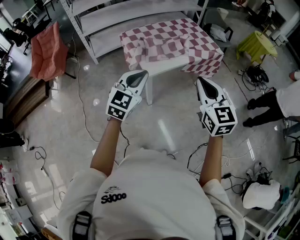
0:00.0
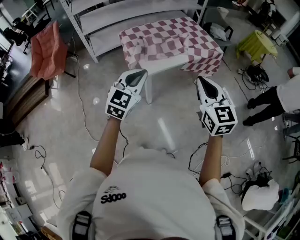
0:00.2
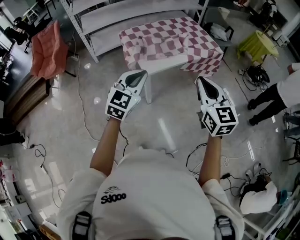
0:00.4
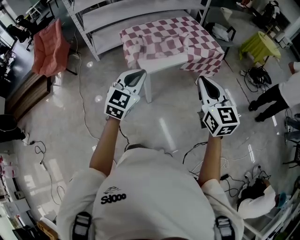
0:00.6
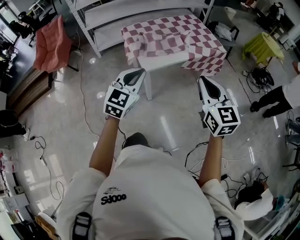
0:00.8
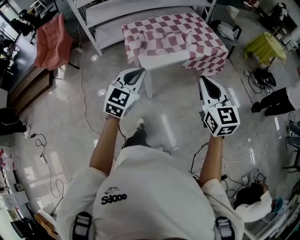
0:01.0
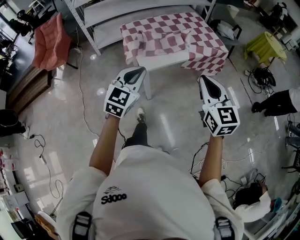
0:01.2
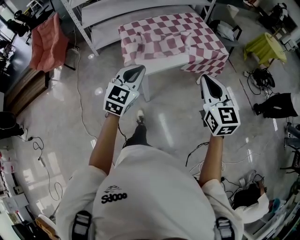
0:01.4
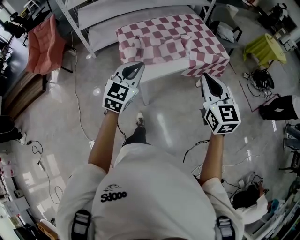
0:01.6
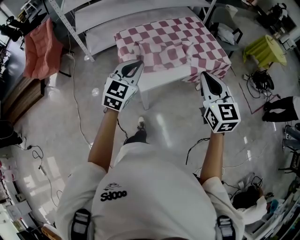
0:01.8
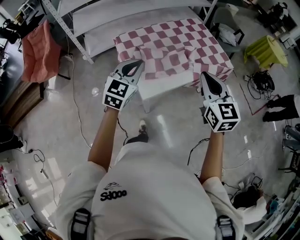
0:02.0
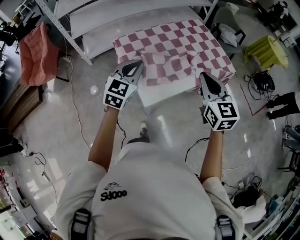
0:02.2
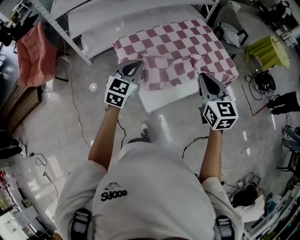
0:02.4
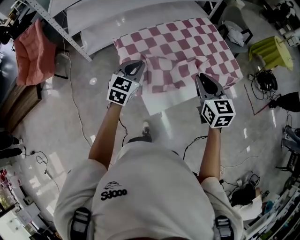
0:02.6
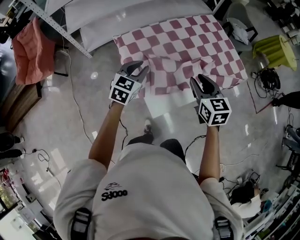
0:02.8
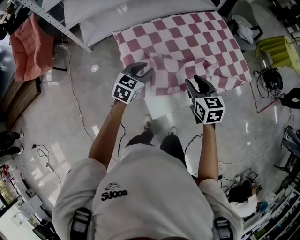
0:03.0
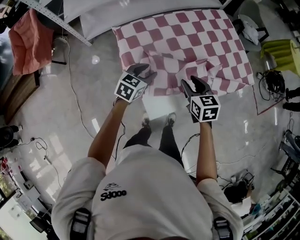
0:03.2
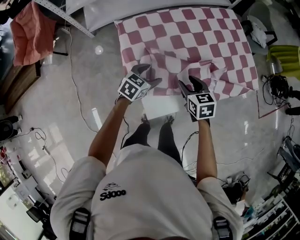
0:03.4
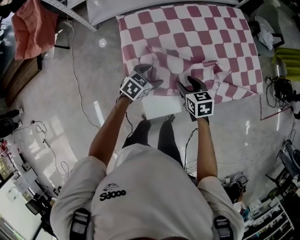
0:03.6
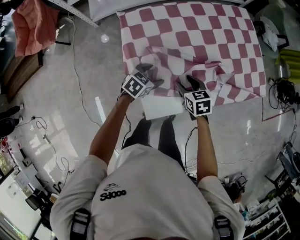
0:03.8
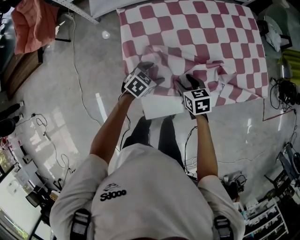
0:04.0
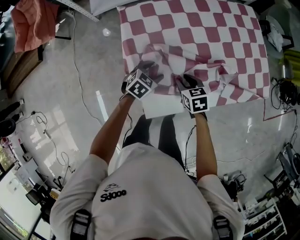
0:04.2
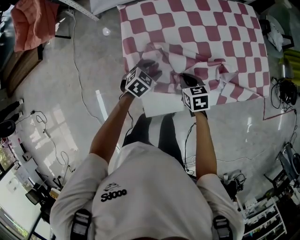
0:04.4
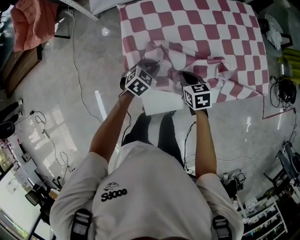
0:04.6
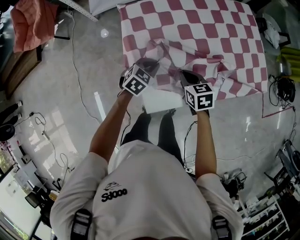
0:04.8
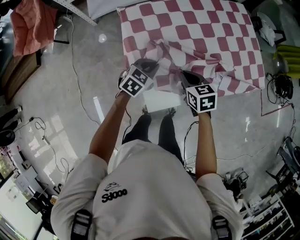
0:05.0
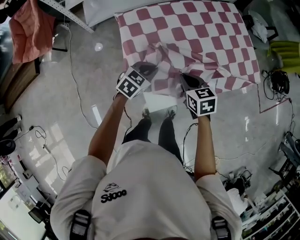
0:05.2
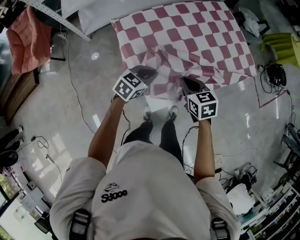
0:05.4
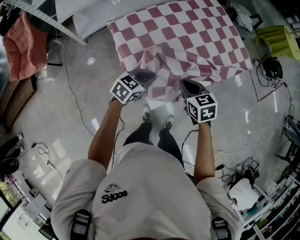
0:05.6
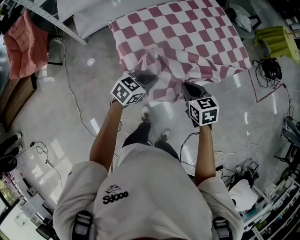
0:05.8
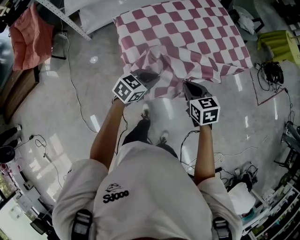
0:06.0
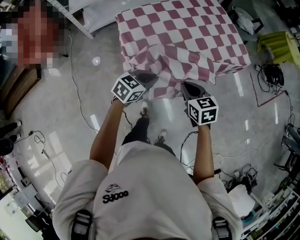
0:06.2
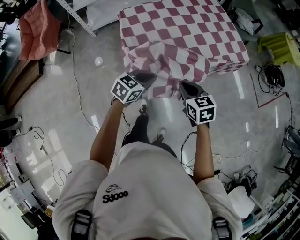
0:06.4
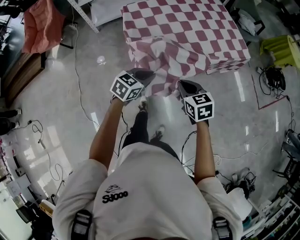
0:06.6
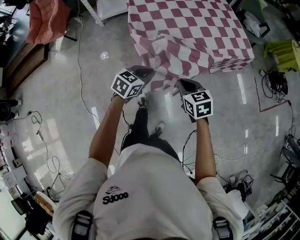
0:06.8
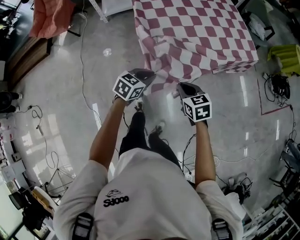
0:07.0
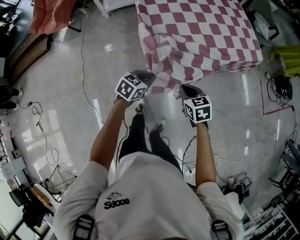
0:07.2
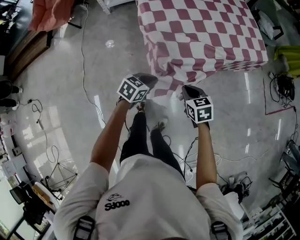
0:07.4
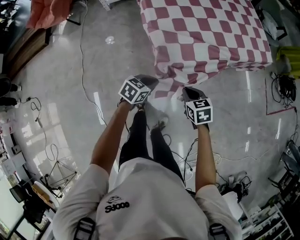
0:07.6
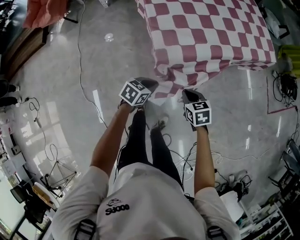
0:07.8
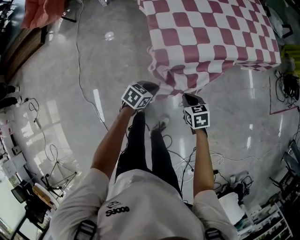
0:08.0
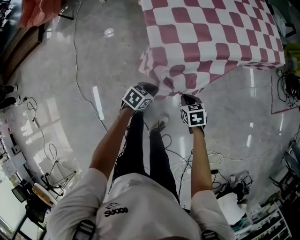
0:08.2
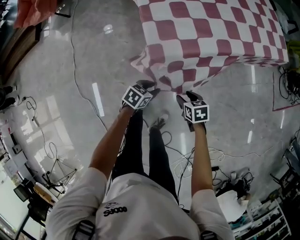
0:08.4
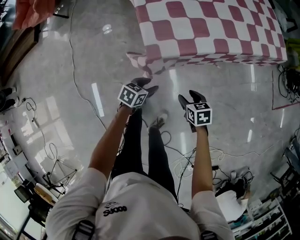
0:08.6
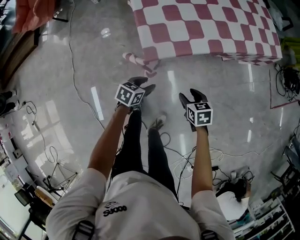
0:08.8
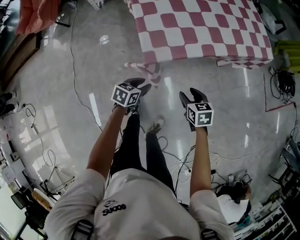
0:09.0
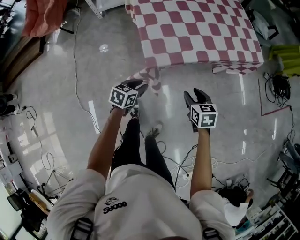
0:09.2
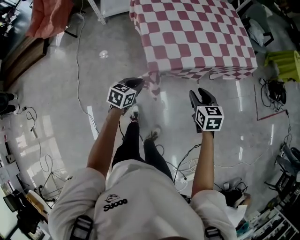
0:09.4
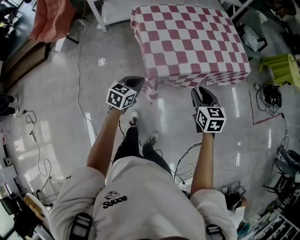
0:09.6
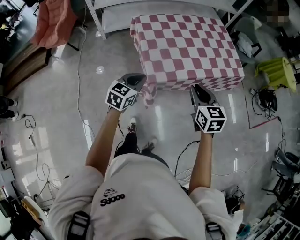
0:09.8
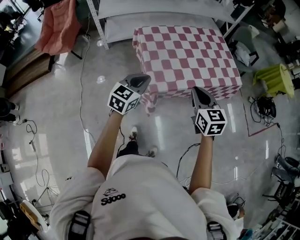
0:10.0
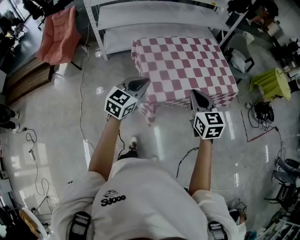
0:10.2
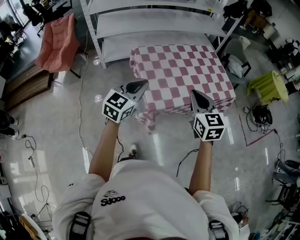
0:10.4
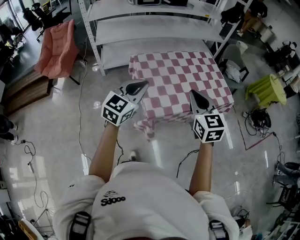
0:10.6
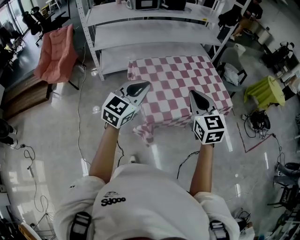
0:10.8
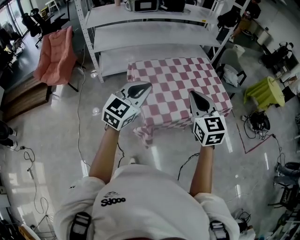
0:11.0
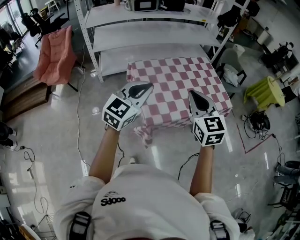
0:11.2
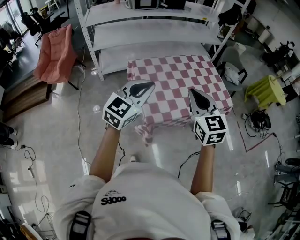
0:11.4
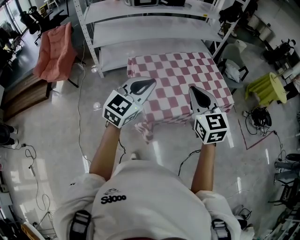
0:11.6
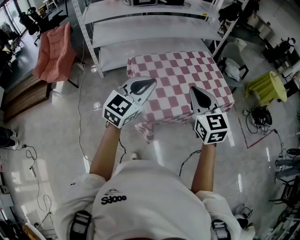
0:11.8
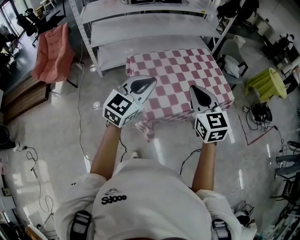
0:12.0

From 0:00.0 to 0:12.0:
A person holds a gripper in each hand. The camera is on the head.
From 0:00.0 to 0:01.6: The grippers both shift forward by some 15 cm.
From 0:01.6 to 0:03.0: The right gripper travels forward, downward and to the left by approximately 40 cm, turns by about 30 degrees, and opens up. Meanwhile the left gripper shifts approximately 40 cm forward and downward, and rotates about 30 degrees.
From 0:03.0 to 0:04.4: Both grippers move downward, approximately 20 cm. The left gripper swivels about 20 degrees, and opens, then closes again. The right gripper changes its angle by about 20 degrees, and closes.
From 0:04.4 to 0:06.0: The grippers both shift backward and upward by some 25 cm. The left gripper rotates roughly 20 degrees, and closes its fingers.
From 0:06.0 to 0:07.6: The grippers both shift backward and downward by roughly 25 cm. The left gripper swivels roughly 20 degrees.
From 0:07.6 to 0:09.0: The left gripper shifts approximately 10 cm downward, and opens; the right gripper goes approximately 10 cm downward and to the right, and opens up.
From 0:09.0 to 0:10.4: Both grippers move upward, approximately 50 cm. The right gripper tilts its fingers roughly 30 degrees upward, and closes its fingers. Meanwhile the left gripper tips its fingers upward by about 30 degrees, and closes its fingers.
From 0:10.4 to 0:12.0: The grippers both shift upward by about 5 cm.

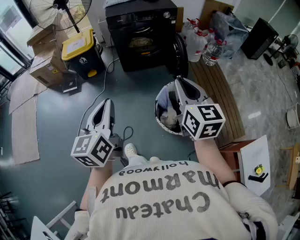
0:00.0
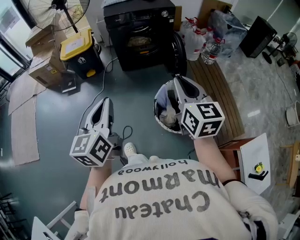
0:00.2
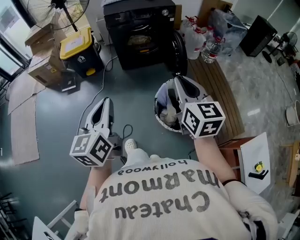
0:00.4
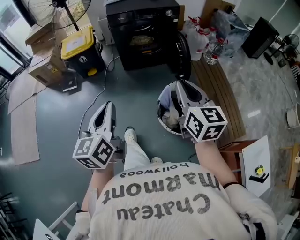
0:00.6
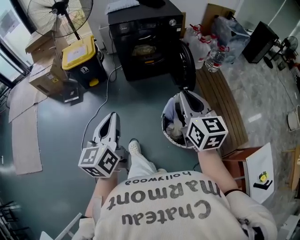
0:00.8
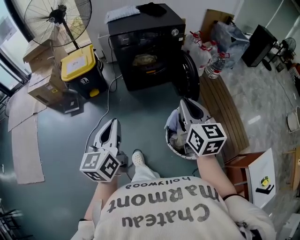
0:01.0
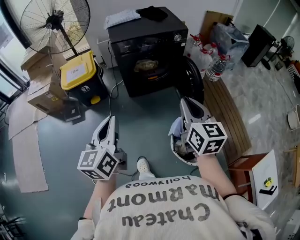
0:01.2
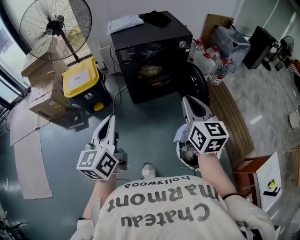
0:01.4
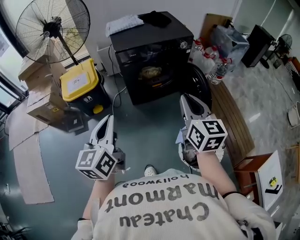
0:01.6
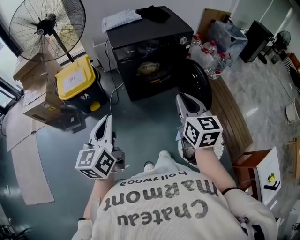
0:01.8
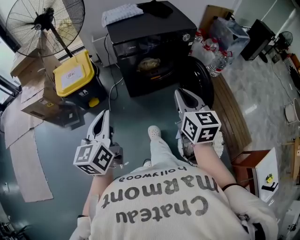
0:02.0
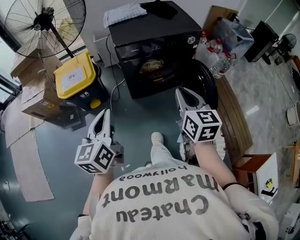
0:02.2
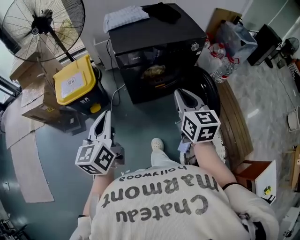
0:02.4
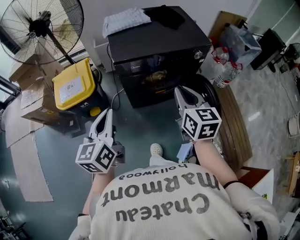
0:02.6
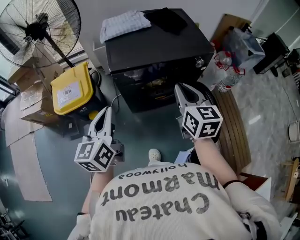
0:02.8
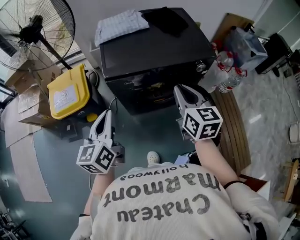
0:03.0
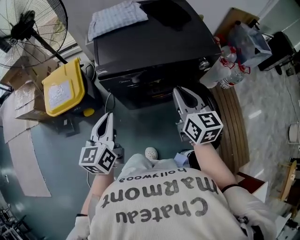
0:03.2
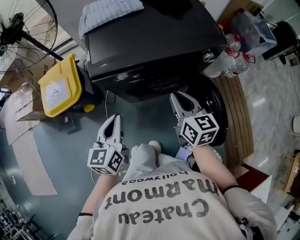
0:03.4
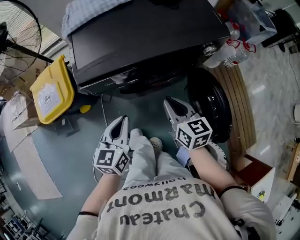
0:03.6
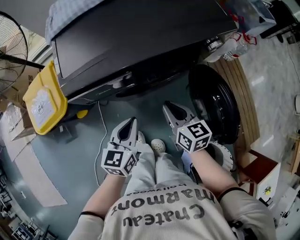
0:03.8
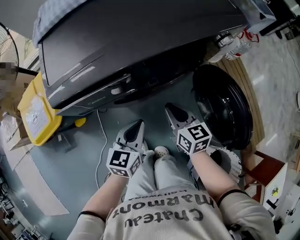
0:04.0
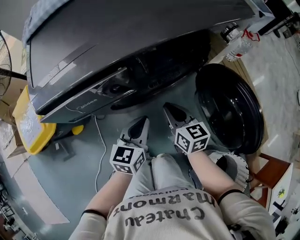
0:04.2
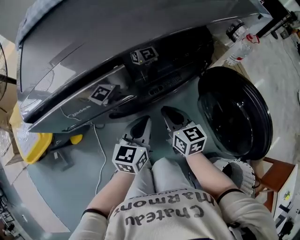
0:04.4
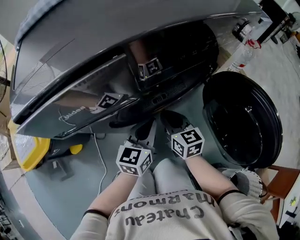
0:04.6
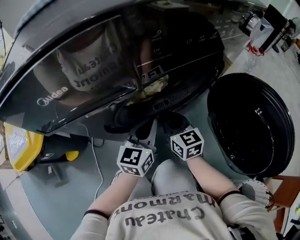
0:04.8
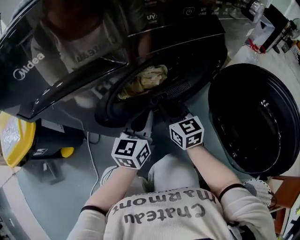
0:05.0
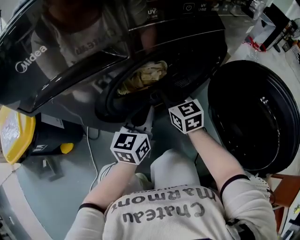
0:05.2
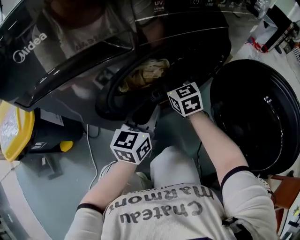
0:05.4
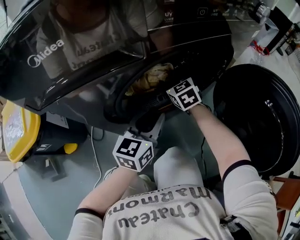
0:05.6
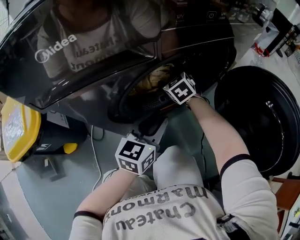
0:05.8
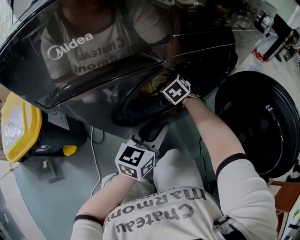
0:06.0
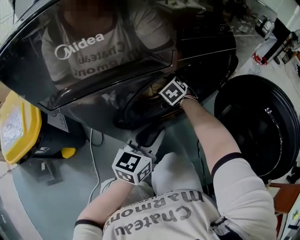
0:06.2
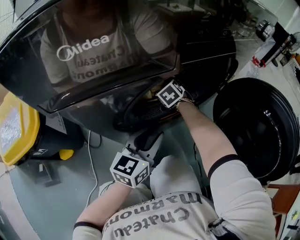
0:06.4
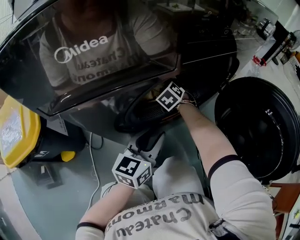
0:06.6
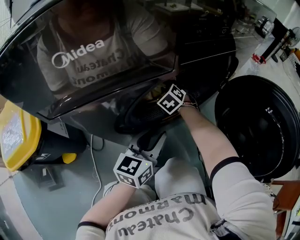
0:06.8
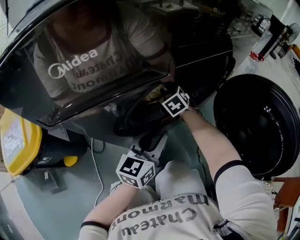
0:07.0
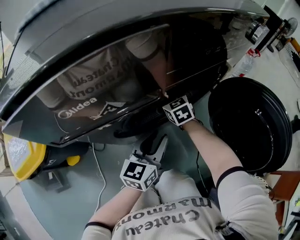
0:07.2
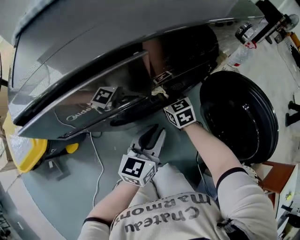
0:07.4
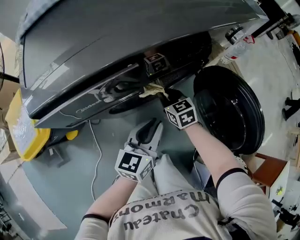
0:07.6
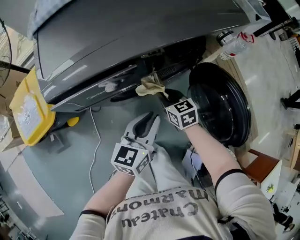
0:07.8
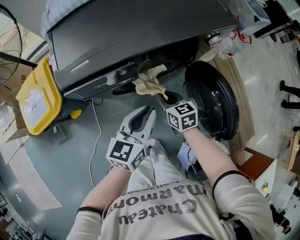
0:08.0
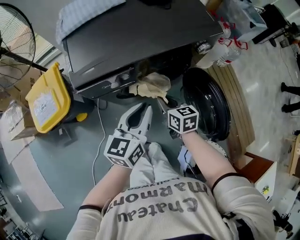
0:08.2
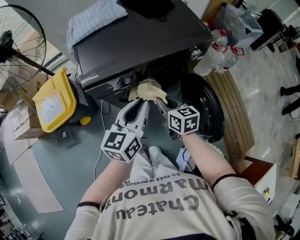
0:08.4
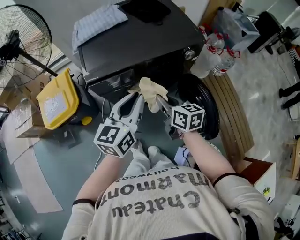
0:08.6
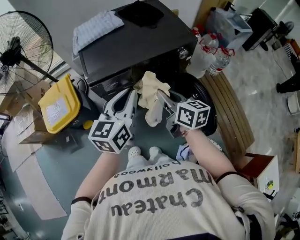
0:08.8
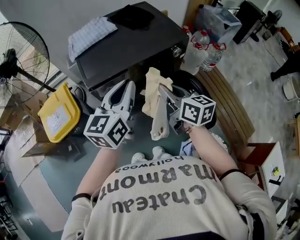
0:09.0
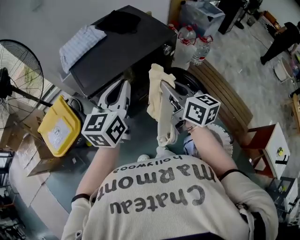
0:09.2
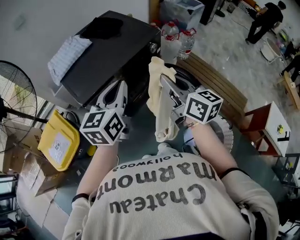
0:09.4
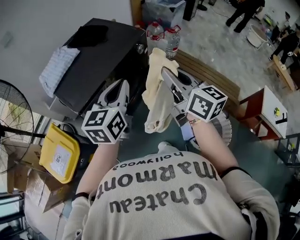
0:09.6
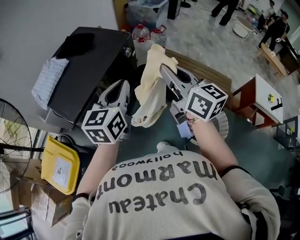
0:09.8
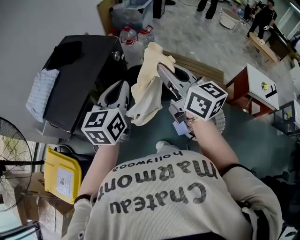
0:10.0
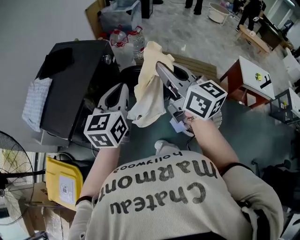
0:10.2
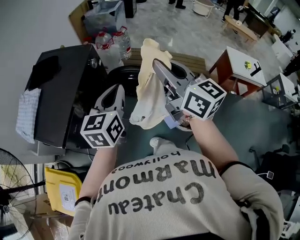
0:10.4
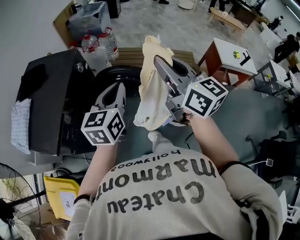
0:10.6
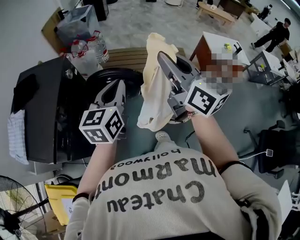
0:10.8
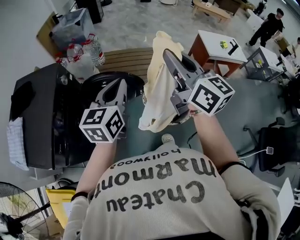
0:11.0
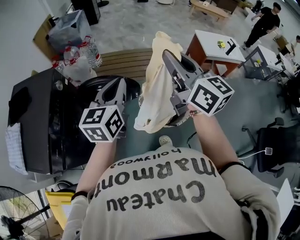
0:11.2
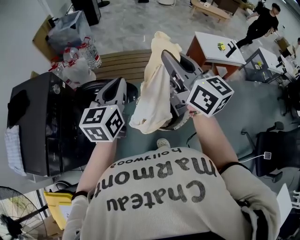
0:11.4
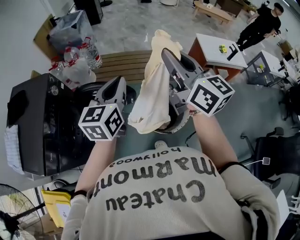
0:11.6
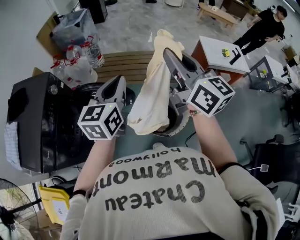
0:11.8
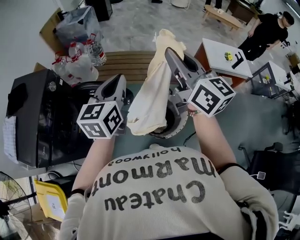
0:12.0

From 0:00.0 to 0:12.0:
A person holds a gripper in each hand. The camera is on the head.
From 0:00.0 to 0:01.6: Both grippers travel together forward and to the left, approximately 30 cm.
From 0:01.6 to 0:03.0: Both grippers travel together forward, about 35 cm.
From 0:03.0 to 0:04.4: Both grippers travel together downward, some 40 cm. The left gripper swivels about 30 degrees.
From 0:04.4 to 0:06.0: The right gripper is displaced forward and downward by about 25 cm, rolls counterclockwise, seen from behind, by some 40 degrees, and opens up. Meanwhile the left gripper moves downward, roughly 10 cm, and opens up.
From 0:06.0 to 0:07.6: The left gripper heads upward, covering roughly 15 cm. Meanwhile the right gripper shifts some 20 cm backward, upward and to the right, turns by roughly 30 degrees, and closes up.
From 0:07.6 to 0:09.0: Both grippers move upward, approximately 40 cm. The right gripper swivels some 30 degrees.
From 0:09.0 to 0:10.4: The left gripper ends up about 15 cm from where it was, and rotates some 40 degrees. Meanwhile the right gripper changes place by approximately 25 cm, and swivels some 50 degrees.
From 0:10.4 to 0:12.0: The two grippers go some 30 cm to the right.
